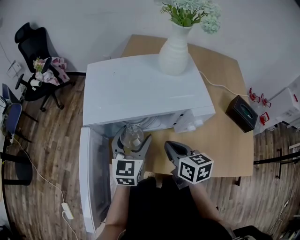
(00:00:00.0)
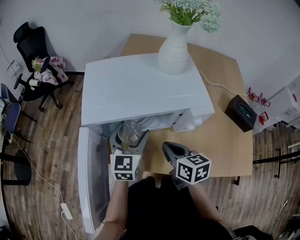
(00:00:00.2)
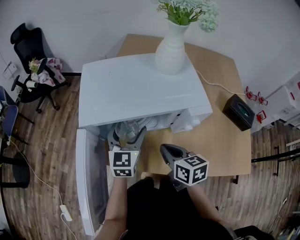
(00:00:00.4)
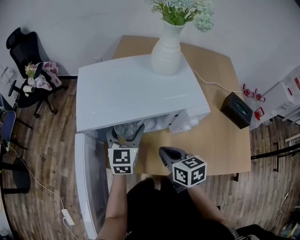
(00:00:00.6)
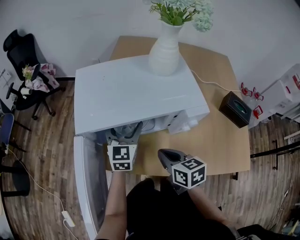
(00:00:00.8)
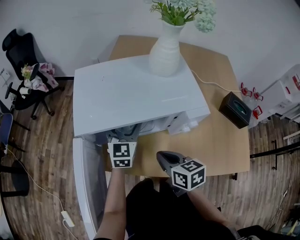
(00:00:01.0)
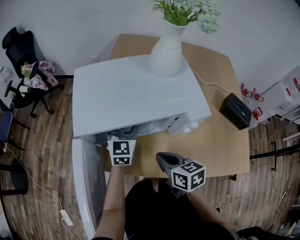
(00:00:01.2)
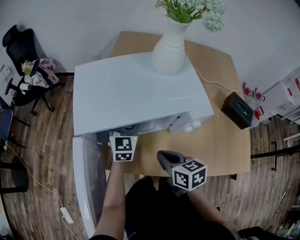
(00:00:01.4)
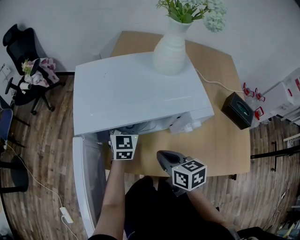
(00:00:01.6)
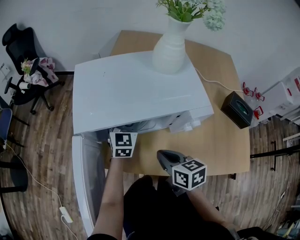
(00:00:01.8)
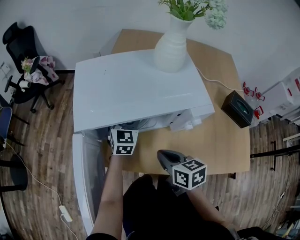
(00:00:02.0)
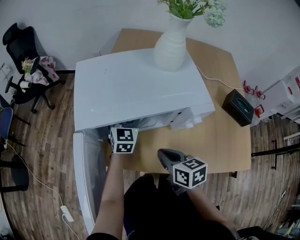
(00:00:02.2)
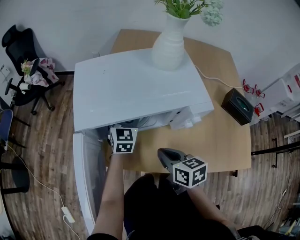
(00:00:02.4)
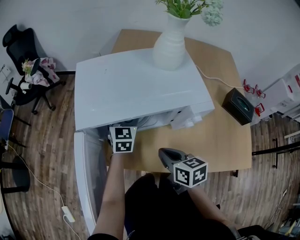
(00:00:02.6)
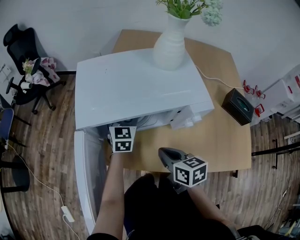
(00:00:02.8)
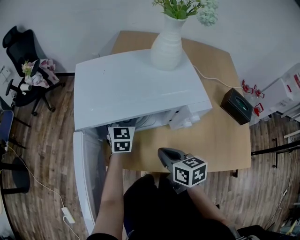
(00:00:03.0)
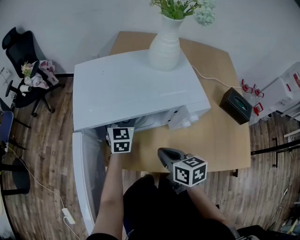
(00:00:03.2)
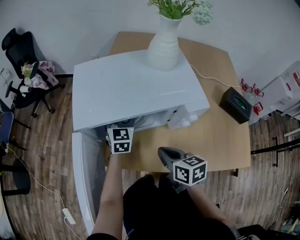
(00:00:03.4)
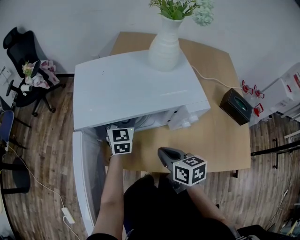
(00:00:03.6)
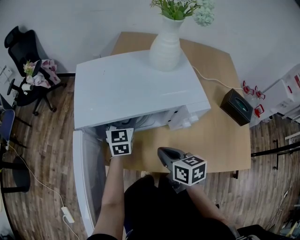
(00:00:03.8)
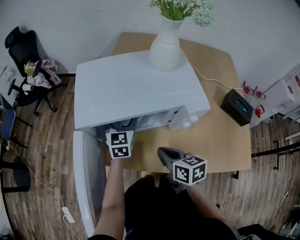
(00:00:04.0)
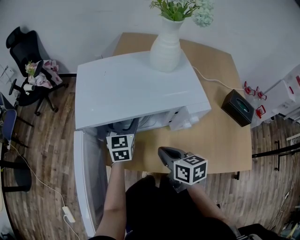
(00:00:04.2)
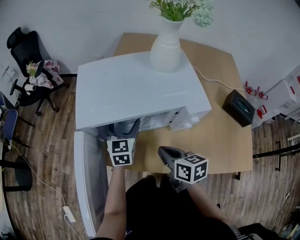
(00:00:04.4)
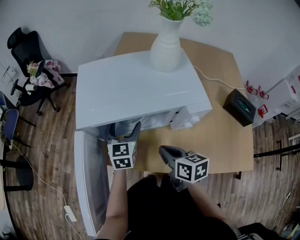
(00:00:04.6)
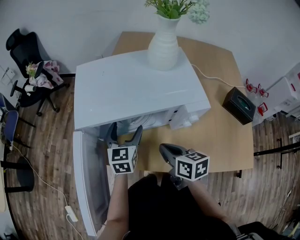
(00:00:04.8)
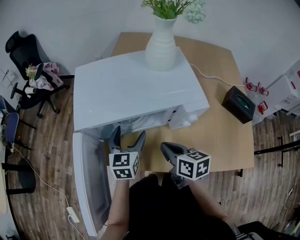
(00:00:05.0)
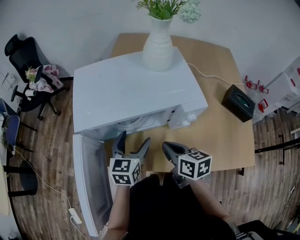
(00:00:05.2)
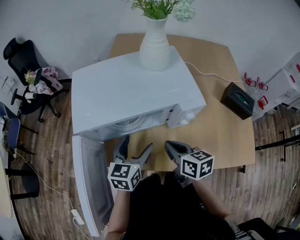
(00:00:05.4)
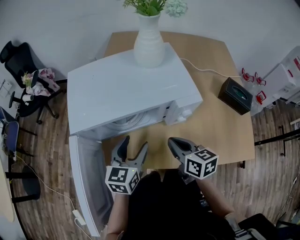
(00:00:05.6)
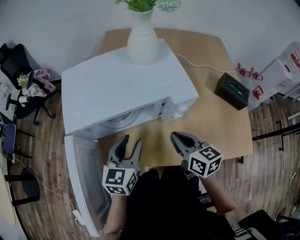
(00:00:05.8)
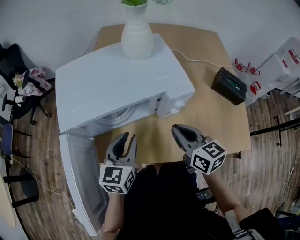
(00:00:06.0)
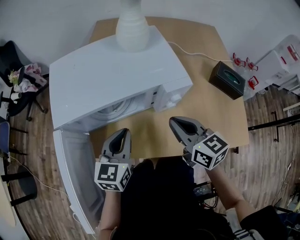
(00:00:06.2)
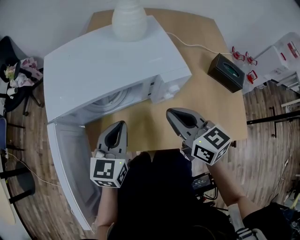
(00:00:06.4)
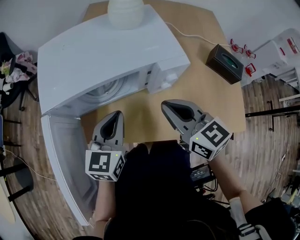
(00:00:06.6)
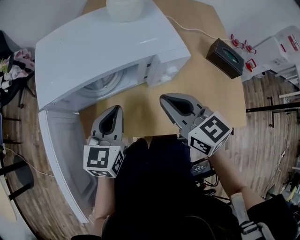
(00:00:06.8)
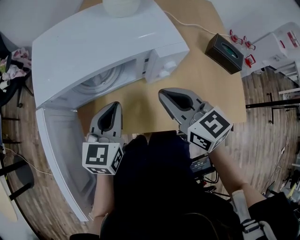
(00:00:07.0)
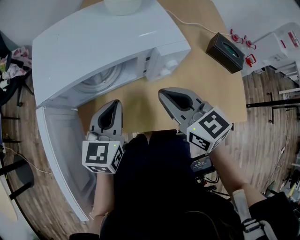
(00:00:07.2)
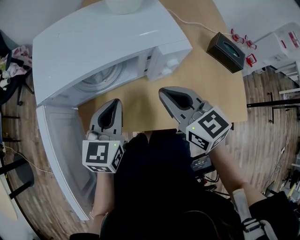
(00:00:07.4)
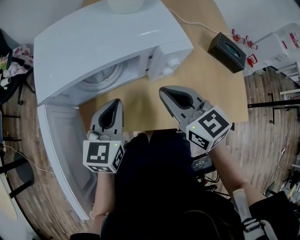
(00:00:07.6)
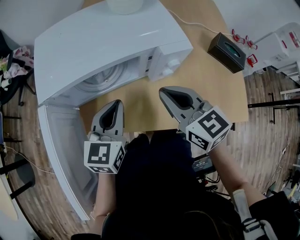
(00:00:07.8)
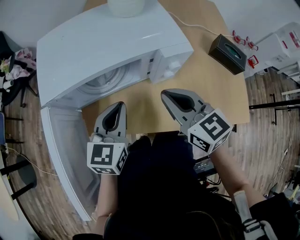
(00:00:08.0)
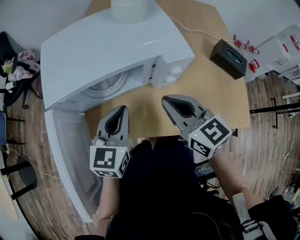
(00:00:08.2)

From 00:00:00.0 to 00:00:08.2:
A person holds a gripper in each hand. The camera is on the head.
From 00:00:00.0 to 00:00:01.6: The left gripper travels forward by roughly 10 cm.
From 00:00:01.6 to 00:00:03.2: The grippers stay close to where they were, moving slightly.
From 00:00:03.2 to 00:00:05.0: The left gripper travels backward by about 10 cm.
From 00:00:05.0 to 00:00:06.6: The right gripper is displaced upward and to the right by some 10 cm, and turns by some 30 degrees. The left gripper goes roughly 10 cm backward and upward, and closes up.
From 00:00:06.6 to 00:00:08.2: The grippers stay close to where they were, moving slightly.

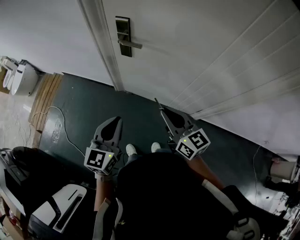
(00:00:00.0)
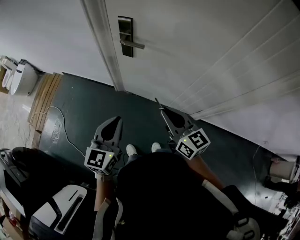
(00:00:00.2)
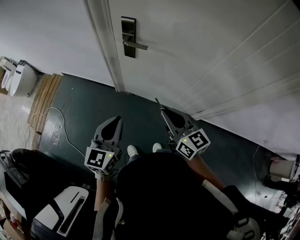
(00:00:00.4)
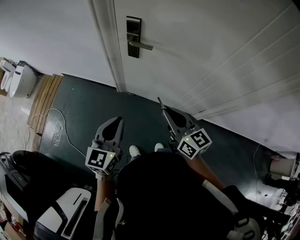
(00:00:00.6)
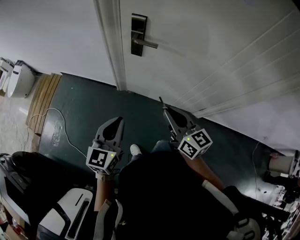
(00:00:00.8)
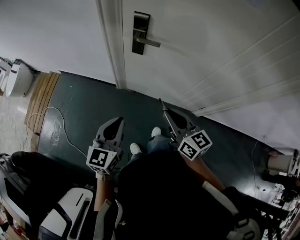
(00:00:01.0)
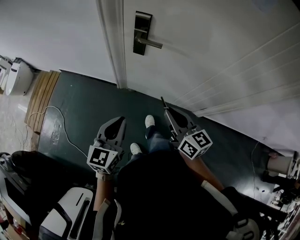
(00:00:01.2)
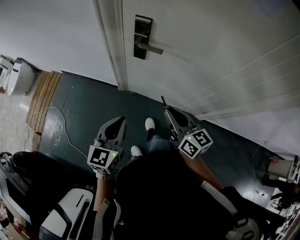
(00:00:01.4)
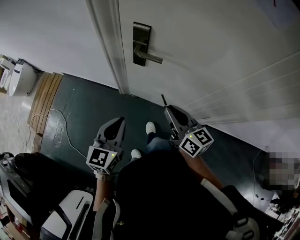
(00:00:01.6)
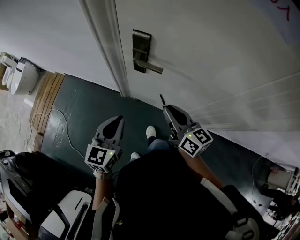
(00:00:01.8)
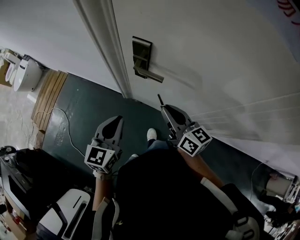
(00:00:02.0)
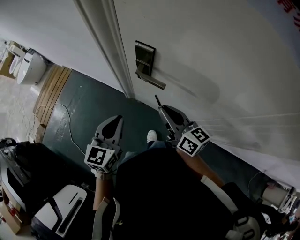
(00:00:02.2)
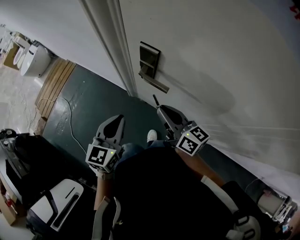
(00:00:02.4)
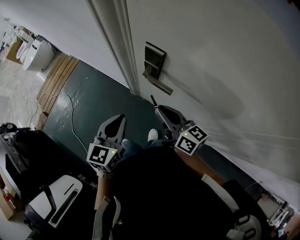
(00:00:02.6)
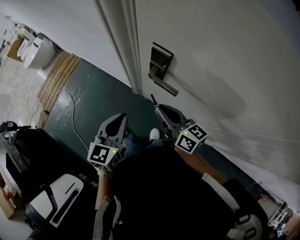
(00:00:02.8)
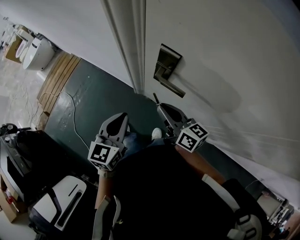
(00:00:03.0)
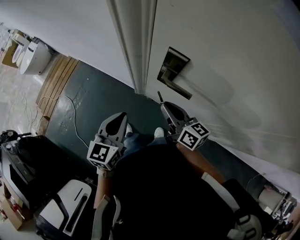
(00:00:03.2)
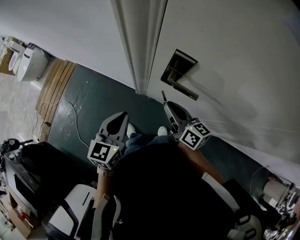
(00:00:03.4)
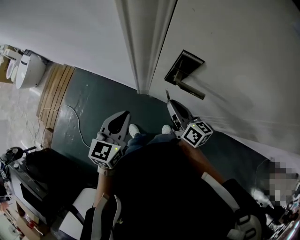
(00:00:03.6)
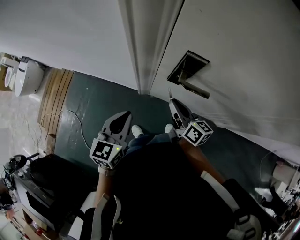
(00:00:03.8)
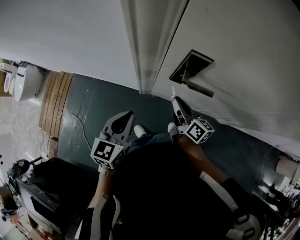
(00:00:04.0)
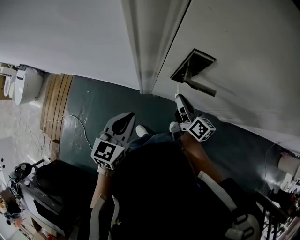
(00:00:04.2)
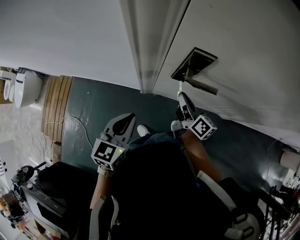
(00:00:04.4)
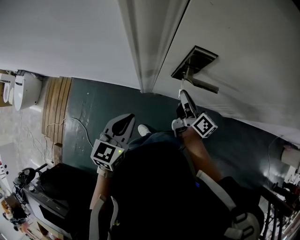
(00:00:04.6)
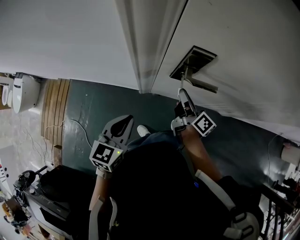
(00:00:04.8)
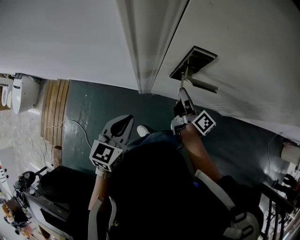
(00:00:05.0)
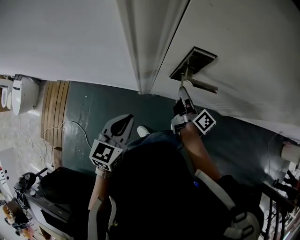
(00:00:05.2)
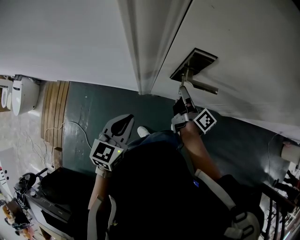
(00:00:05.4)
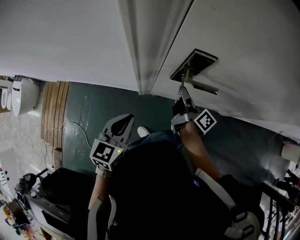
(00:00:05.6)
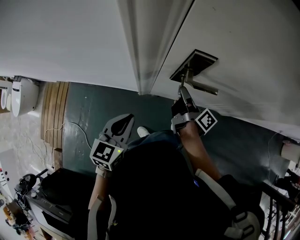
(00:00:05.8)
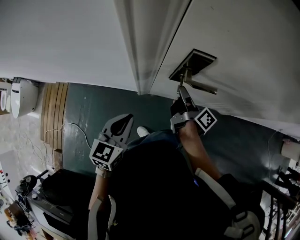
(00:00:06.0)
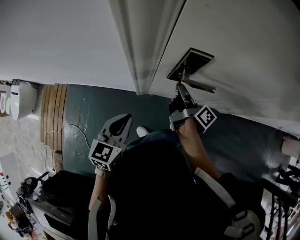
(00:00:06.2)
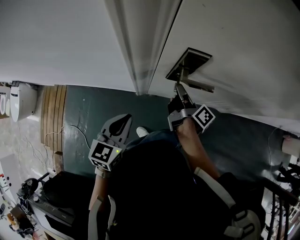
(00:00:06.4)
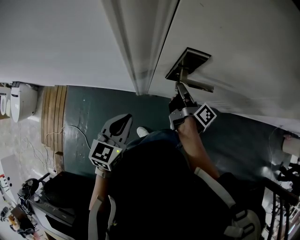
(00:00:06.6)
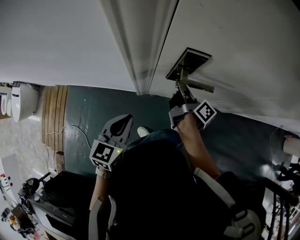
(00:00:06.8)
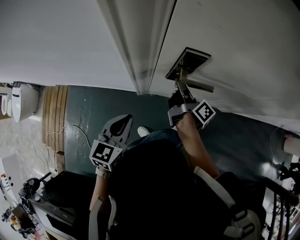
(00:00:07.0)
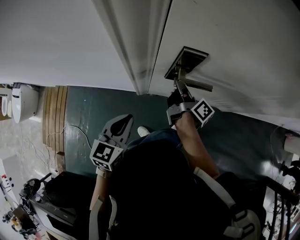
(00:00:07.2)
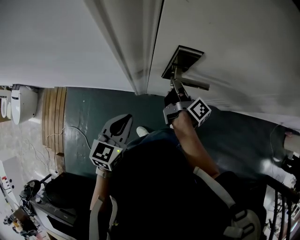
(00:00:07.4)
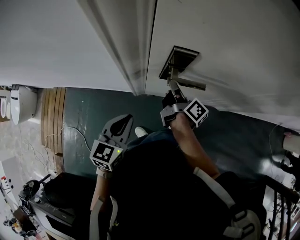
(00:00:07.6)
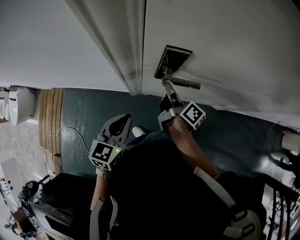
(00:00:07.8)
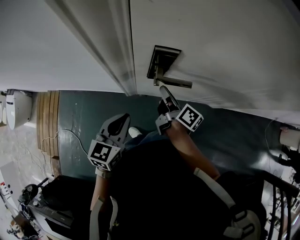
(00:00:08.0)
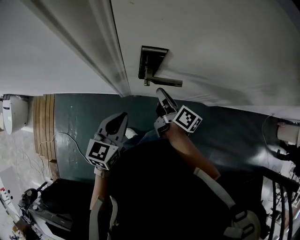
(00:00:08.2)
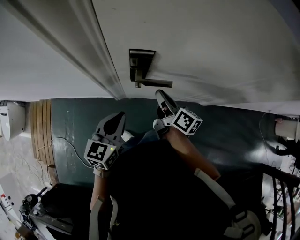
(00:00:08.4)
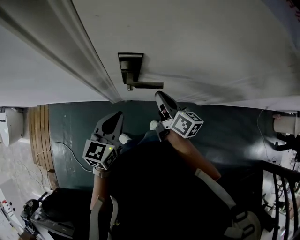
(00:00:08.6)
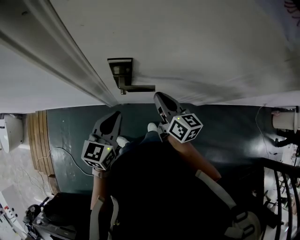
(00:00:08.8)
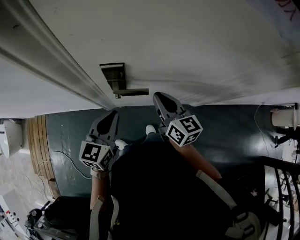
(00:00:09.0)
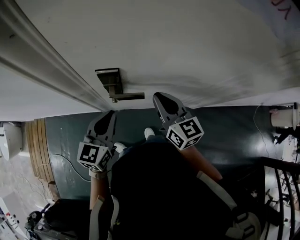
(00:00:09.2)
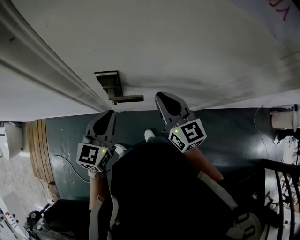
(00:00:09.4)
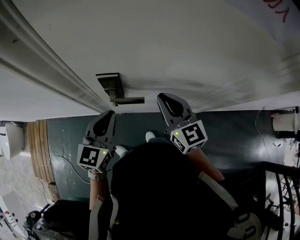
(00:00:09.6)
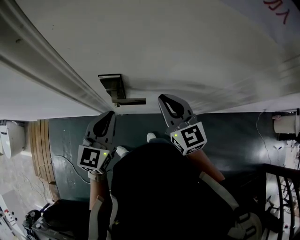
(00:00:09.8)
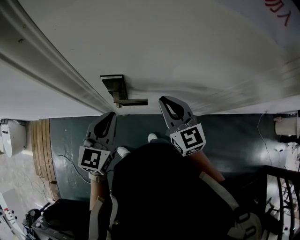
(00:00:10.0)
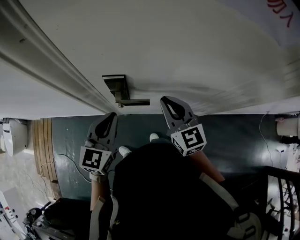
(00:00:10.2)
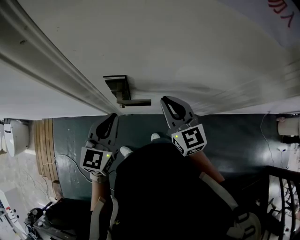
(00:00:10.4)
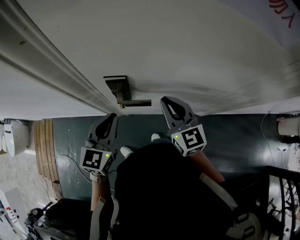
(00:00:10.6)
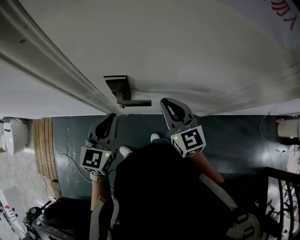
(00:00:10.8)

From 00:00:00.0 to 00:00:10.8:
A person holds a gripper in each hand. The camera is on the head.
From 00:00:00.0 to 00:00:01.6: Both grippers move forward and to the left, some 15 cm.
From 00:00:01.6 to 00:00:03.0: Both grippers travel together forward, about 15 cm. The right gripper rotates roughly 20 degrees.
From 00:00:03.0 to 00:00:04.6: The right gripper goes roughly 10 cm downward, and turns by approximately 40 degrees. Meanwhile the left gripper changes place by approximately 15 cm, and rotates about 30 degrees.
From 00:00:04.6 to 00:00:06.2: The right gripper rotates roughly 30 degrees.
From 00:00:06.2 to 00:00:07.8: The left gripper ends up approximately 5 cm from where it was.
From 00:00:07.8 to 00:00:09.2: The right gripper shifts some 20 cm upward and to the right, and rotates around the line of its fingers by some 60 degrees, counterclockwise from behind; the left gripper moves to the right, forward and upward, roughly 15 cm.
From 00:00:09.2 to 00:00:10.8: The grippers stay close to where they were, moving slightly.

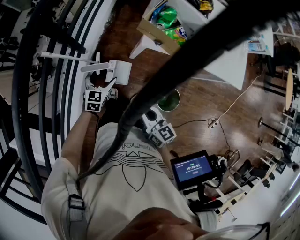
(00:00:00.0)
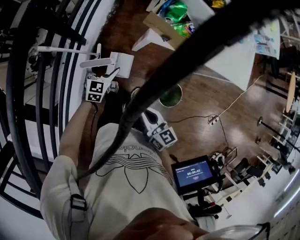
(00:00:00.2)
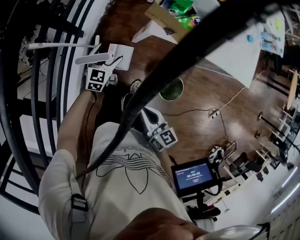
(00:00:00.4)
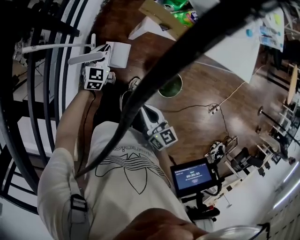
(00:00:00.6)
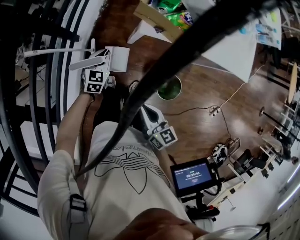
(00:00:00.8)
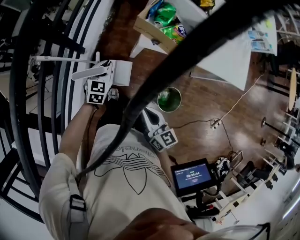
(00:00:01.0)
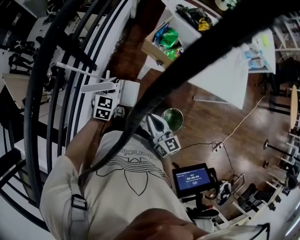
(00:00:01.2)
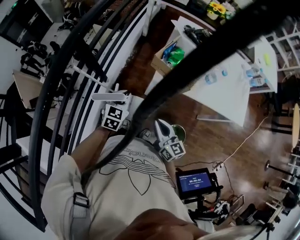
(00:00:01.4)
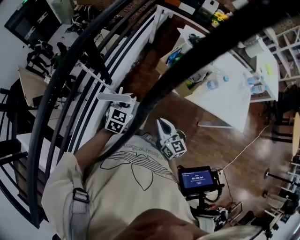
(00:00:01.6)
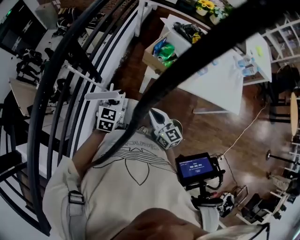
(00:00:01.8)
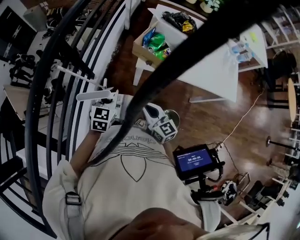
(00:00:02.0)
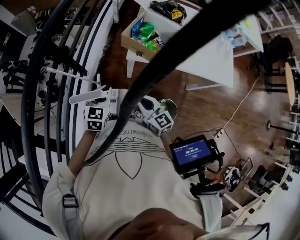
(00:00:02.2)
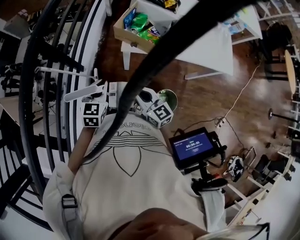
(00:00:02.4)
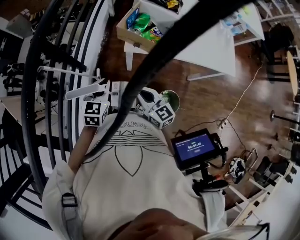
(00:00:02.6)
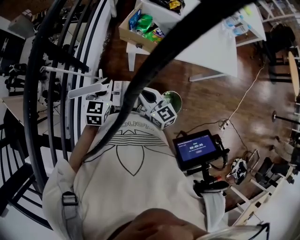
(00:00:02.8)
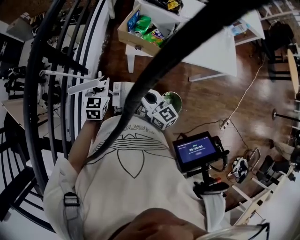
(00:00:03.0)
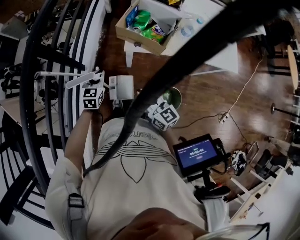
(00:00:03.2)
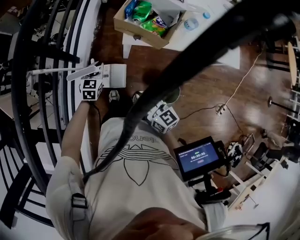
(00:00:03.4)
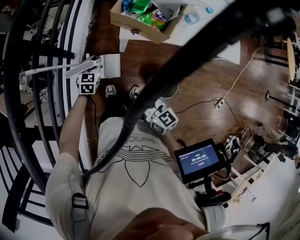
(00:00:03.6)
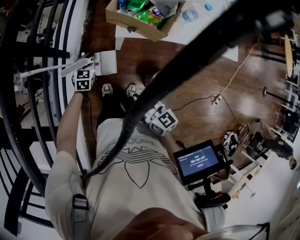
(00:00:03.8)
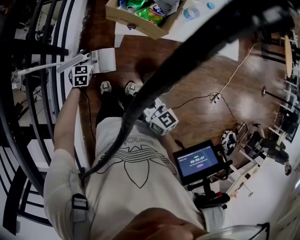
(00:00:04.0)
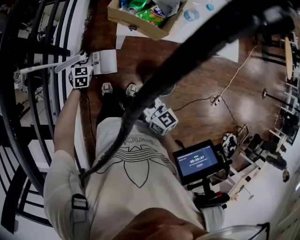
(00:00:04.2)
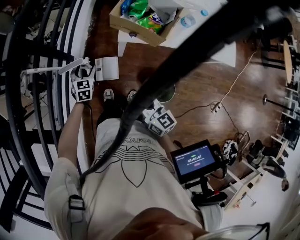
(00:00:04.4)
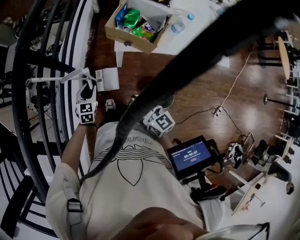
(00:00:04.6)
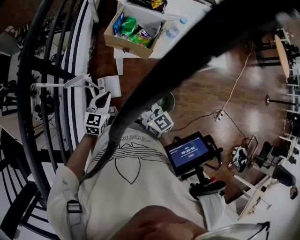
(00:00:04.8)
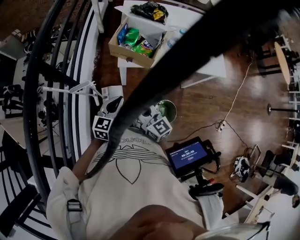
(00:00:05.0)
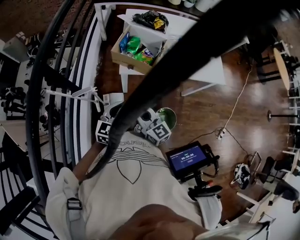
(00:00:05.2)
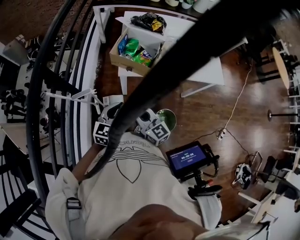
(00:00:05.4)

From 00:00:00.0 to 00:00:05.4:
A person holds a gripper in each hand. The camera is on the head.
From 00:00:00.0 to 00:00:01.4: The right gripper goes about 10 cm forward and to the right. The left gripper heads upward, covering about 15 cm, and closes.
From 00:00:01.4 to 00:00:02.8: The left gripper shifts by approximately 5 cm.
From 00:00:02.8 to 00:00:04.0: The left gripper heads downward and forward, covering approximately 25 cm. Meanwhile the right gripper heads downward, covering approximately 5 cm.
From 00:00:04.0 to 00:00:05.4: The right gripper moves upward, about 10 cm, and changes its angle by approximately 20 degrees; the left gripper shifts some 30 cm upward, backward and to the right, swivels roughly 30 degrees, and opens, then closes once more.
